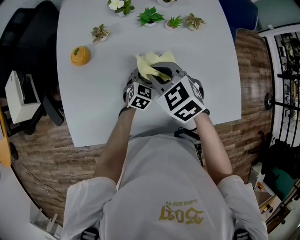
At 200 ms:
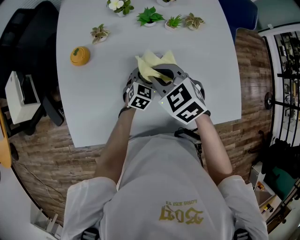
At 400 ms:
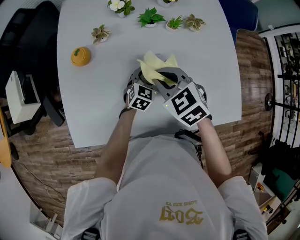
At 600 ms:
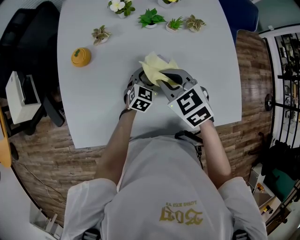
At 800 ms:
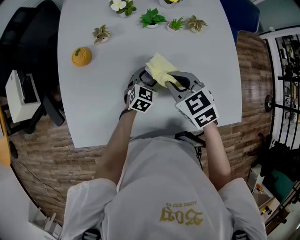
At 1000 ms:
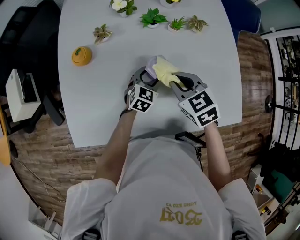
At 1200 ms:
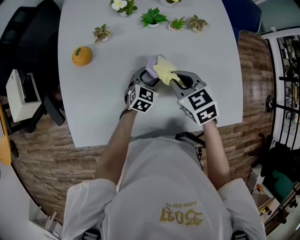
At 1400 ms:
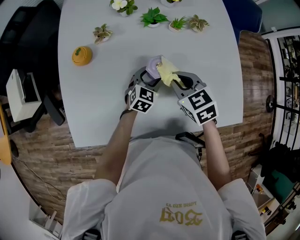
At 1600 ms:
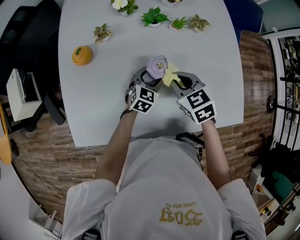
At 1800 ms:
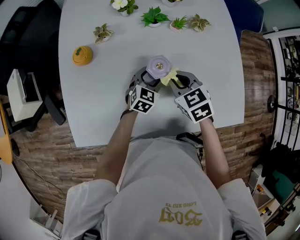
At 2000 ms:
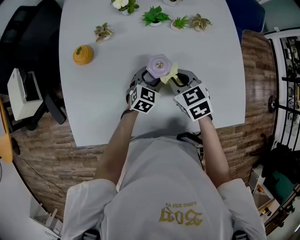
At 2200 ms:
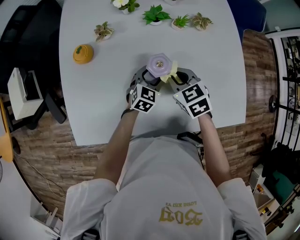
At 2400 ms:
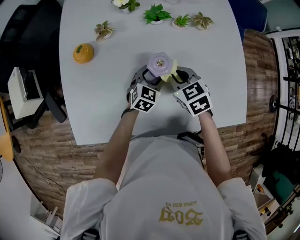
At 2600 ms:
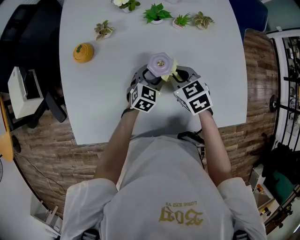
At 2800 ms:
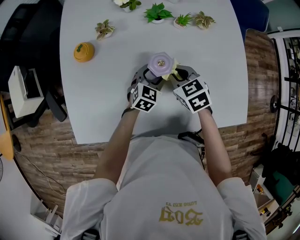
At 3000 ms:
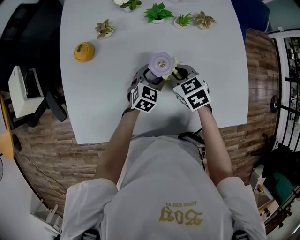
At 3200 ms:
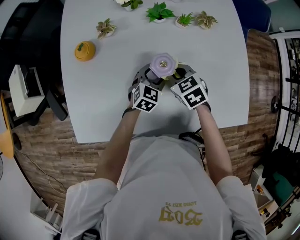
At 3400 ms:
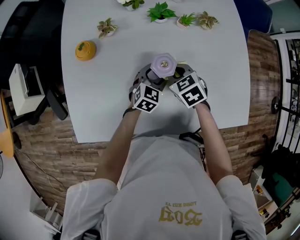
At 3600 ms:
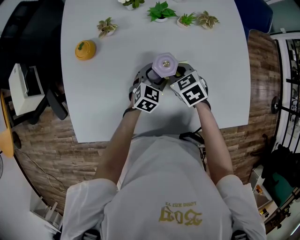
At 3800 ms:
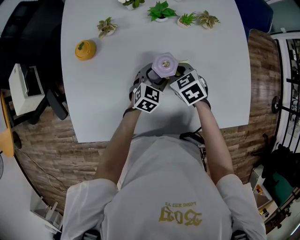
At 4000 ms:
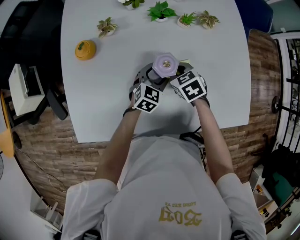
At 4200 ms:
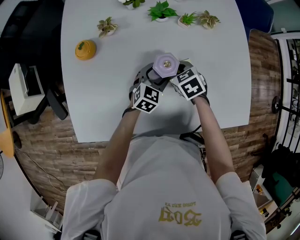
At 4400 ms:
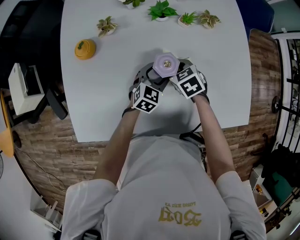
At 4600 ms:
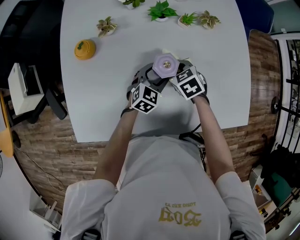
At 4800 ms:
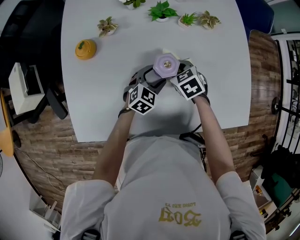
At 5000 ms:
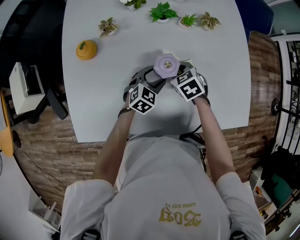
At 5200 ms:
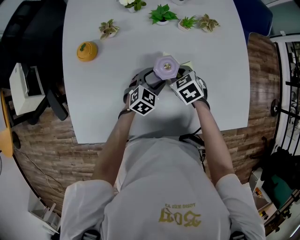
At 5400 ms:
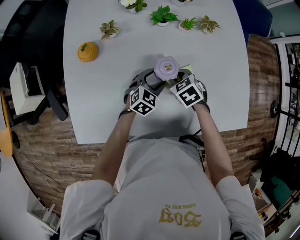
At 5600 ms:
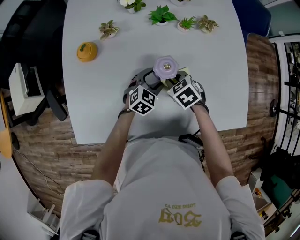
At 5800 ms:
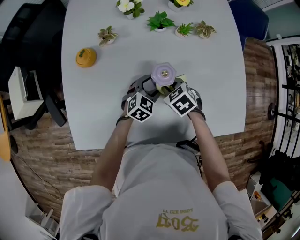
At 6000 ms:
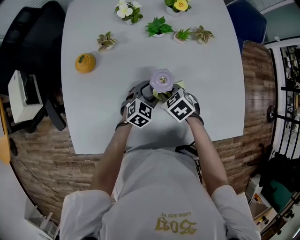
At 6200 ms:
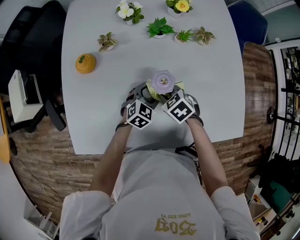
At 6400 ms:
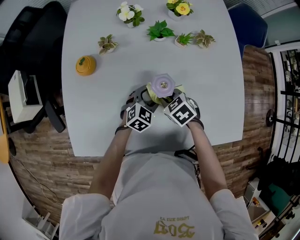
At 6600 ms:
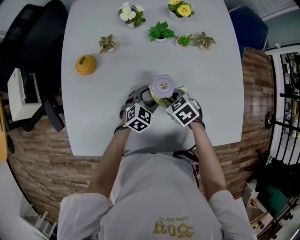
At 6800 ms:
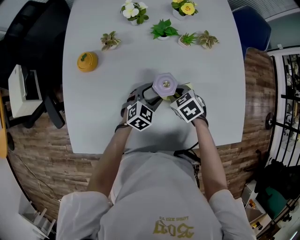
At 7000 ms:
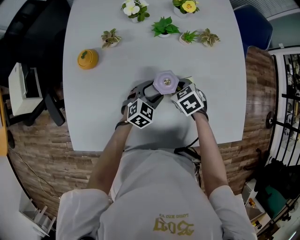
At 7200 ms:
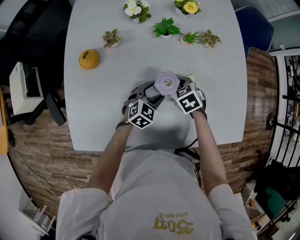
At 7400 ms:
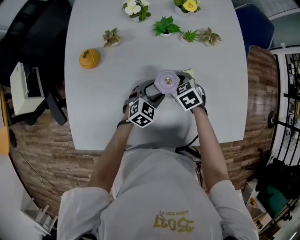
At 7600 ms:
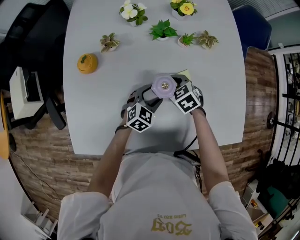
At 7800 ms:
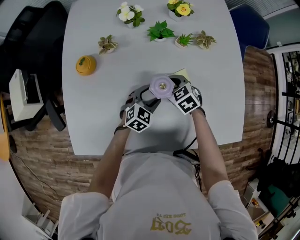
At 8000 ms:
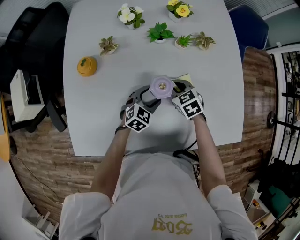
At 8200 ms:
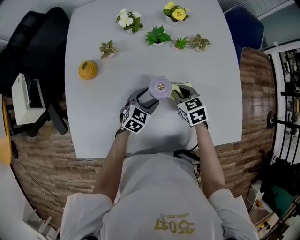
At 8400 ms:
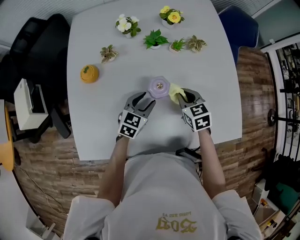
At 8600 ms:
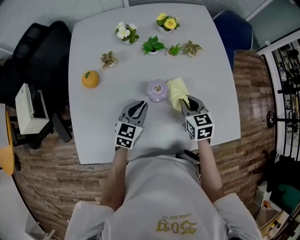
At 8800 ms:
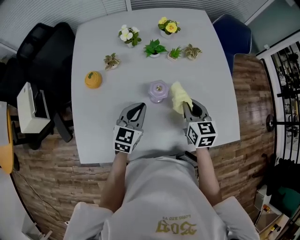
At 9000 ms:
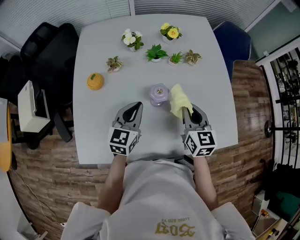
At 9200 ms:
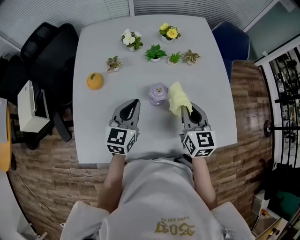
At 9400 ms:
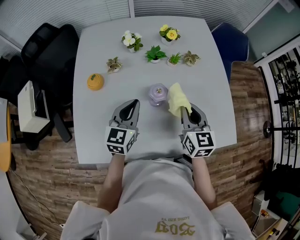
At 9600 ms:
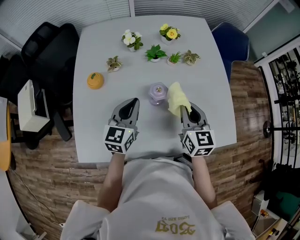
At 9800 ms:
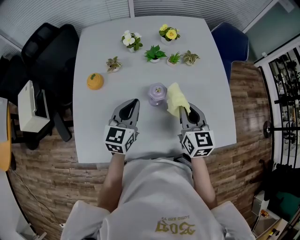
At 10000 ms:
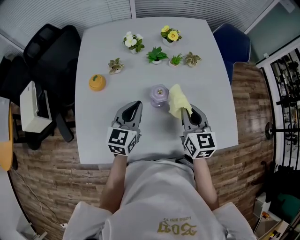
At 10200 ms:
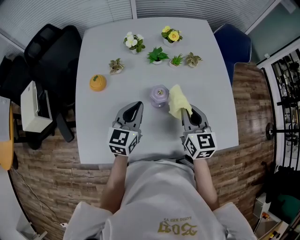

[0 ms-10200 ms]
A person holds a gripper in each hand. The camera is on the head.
0 ms to 1400 ms: The right gripper is displaced to the right by about 5 cm.
1400 ms to 3000 ms: The right gripper is displaced downward by approximately 5 cm.
3000 ms to 4400 ms: The right gripper heads downward, covering approximately 5 cm.
4400 ms to 5800 ms: The grippers stay close to where they were, moving slightly.
5800 ms to 7200 ms: The right gripper moves about 5 cm.
7200 ms to 8800 ms: The left gripper shifts about 15 cm upward, changes its angle by approximately 30 degrees, and closes; the right gripper heads upward, to the right and backward, covering about 20 cm, and angles its fingers upward, by some 30 degrees.
8800 ms to 10200 ms: Both grippers travel together upward, some 5 cm.

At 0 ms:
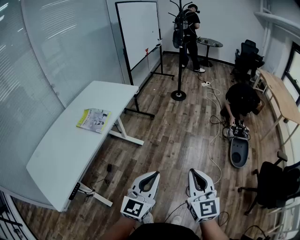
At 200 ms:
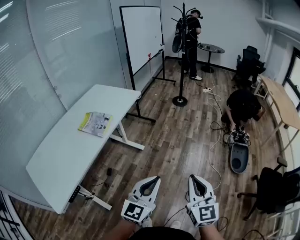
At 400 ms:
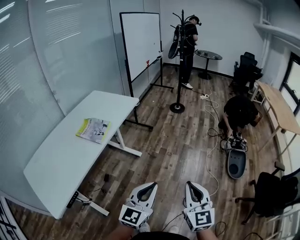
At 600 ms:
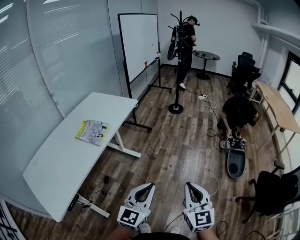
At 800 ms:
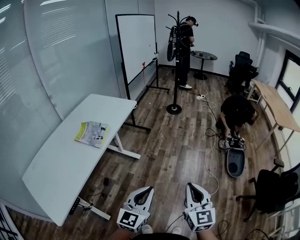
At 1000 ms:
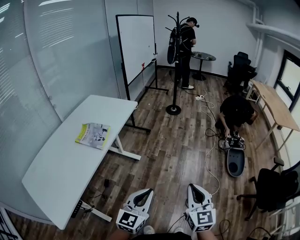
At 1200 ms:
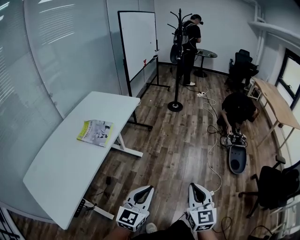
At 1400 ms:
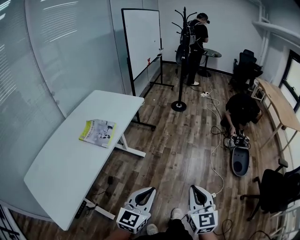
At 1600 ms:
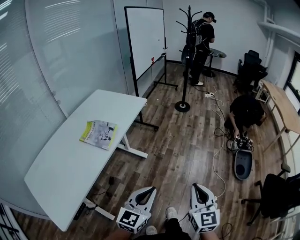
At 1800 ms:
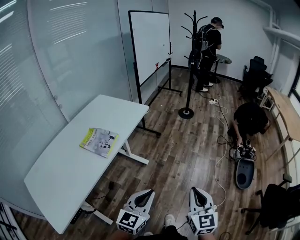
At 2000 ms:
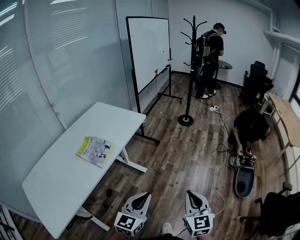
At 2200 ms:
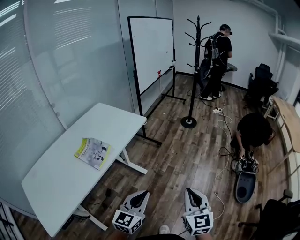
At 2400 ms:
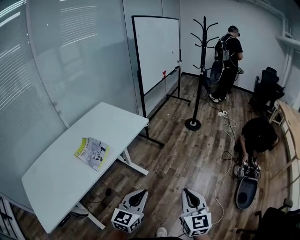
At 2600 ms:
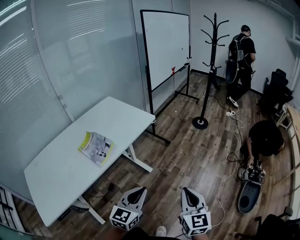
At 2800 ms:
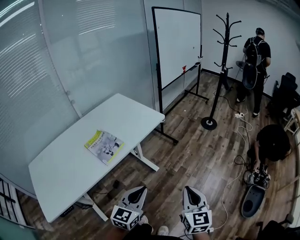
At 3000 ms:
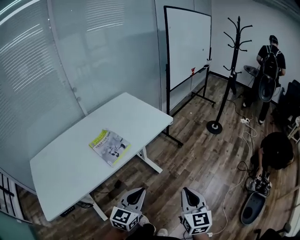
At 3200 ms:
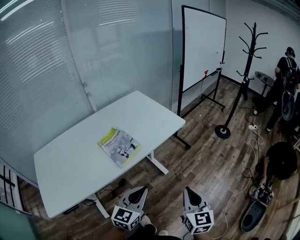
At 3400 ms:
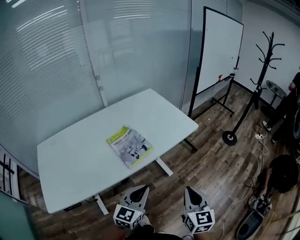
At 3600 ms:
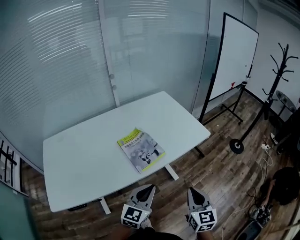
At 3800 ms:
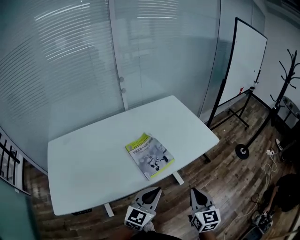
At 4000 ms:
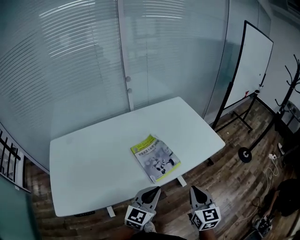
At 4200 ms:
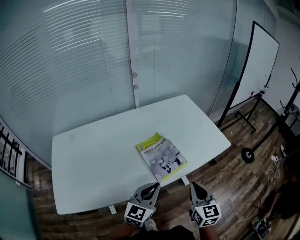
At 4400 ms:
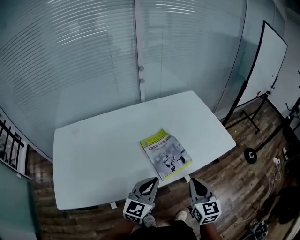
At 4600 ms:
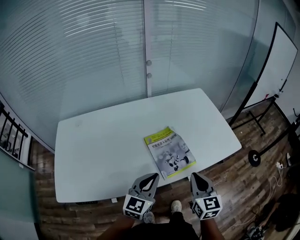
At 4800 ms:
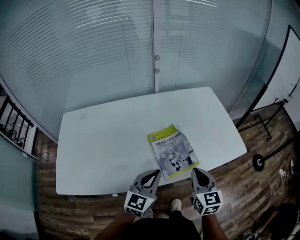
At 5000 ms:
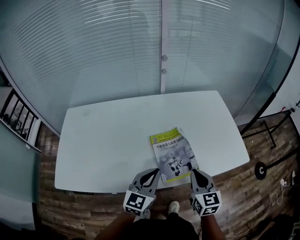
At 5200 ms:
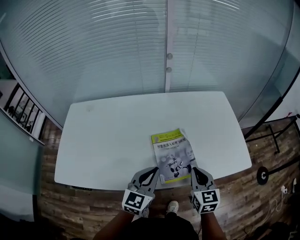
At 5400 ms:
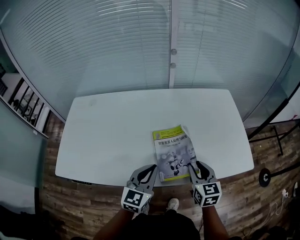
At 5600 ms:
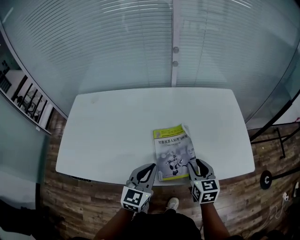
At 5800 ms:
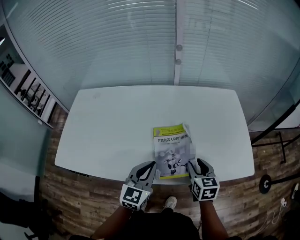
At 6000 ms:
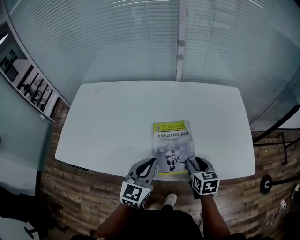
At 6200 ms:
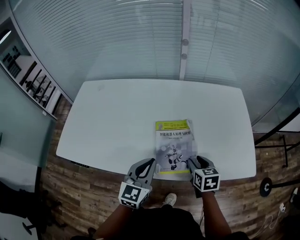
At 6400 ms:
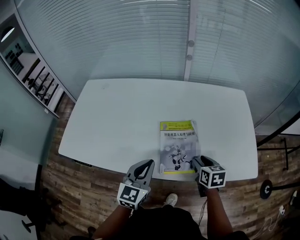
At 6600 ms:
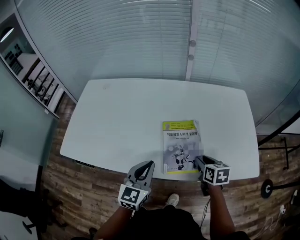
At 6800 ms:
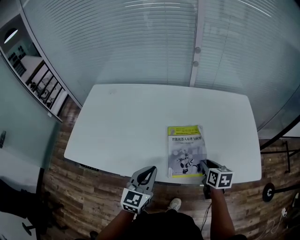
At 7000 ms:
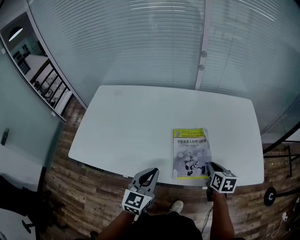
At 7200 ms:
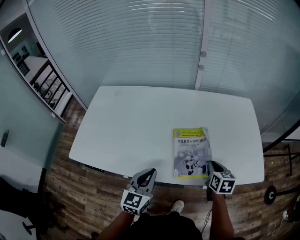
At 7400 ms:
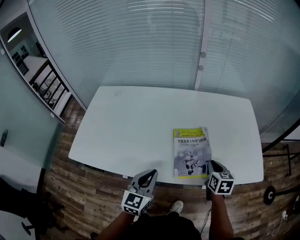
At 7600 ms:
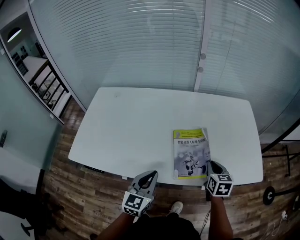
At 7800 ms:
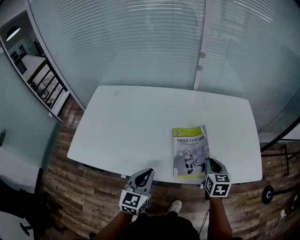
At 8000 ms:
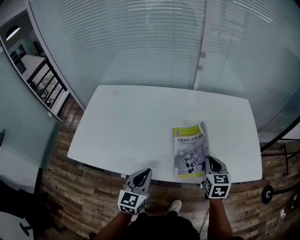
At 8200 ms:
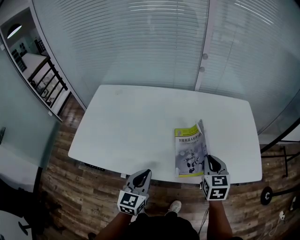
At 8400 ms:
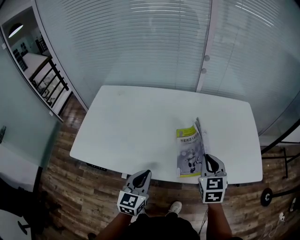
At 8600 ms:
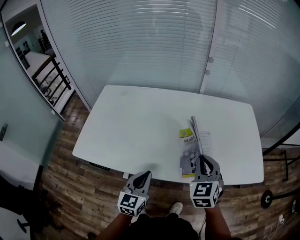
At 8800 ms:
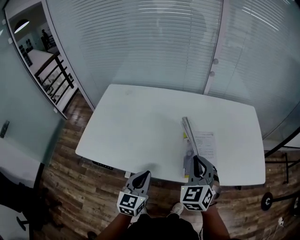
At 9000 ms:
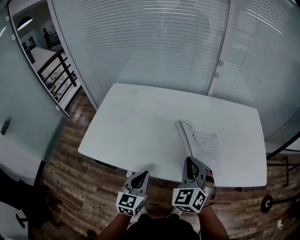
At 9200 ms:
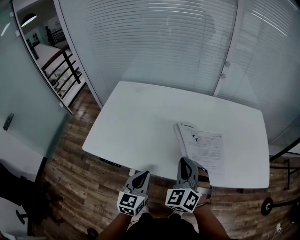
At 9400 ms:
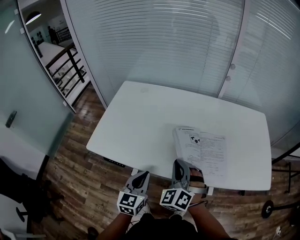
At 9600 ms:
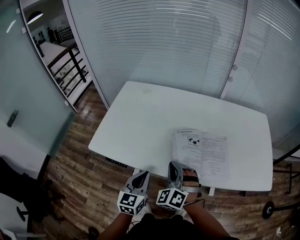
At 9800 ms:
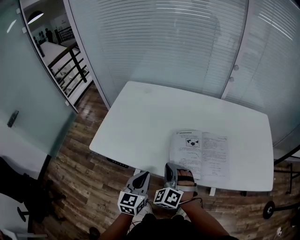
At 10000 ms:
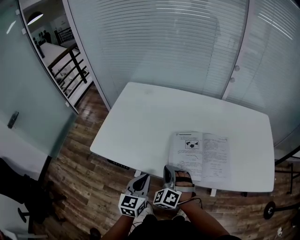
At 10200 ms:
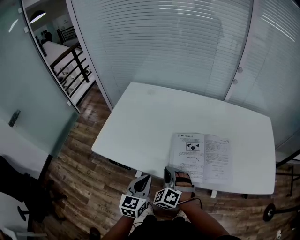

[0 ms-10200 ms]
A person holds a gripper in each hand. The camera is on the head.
0 ms to 1400 ms: The right gripper moves to the left, approximately 5 cm. Meanwhile the left gripper is displaced to the left by some 10 cm.
1400 ms to 3000 ms: The left gripper shifts by some 20 cm, and turns by roughly 30 degrees. Meanwhile the right gripper shifts by approximately 25 cm, and swivels about 30 degrees.
3000 ms to 4400 ms: The two grippers go some 30 cm to the left and forward. The left gripper rotates roughly 20 degrees, while the right gripper swivels approximately 20 degrees.
4400 ms to 5800 ms: The left gripper moves approximately 5 cm, and turns by about 30 degrees. The right gripper shifts by some 20 cm, swivels approximately 30 degrees, and opens its fingers.
5800 ms to 7200 ms: The right gripper closes up, while the left gripper heads to the left, covering about 10 cm.
7200 ms to 8800 ms: The left gripper moves to the left, roughly 5 cm. The right gripper is displaced to the left and upward by roughly 20 cm, and twists approximately 50 degrees counterclockwise, seen from behind.
8800 ms to 10200 ms: The right gripper goes some 25 cm to the left and downward, and rotates about 30 degrees. Meanwhile the left gripper travels to the left by about 10 cm.

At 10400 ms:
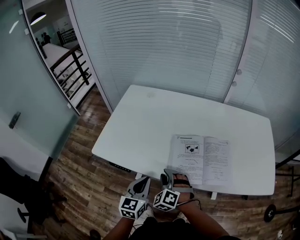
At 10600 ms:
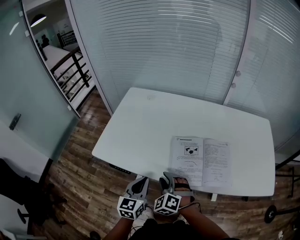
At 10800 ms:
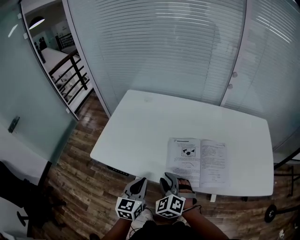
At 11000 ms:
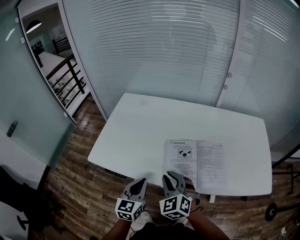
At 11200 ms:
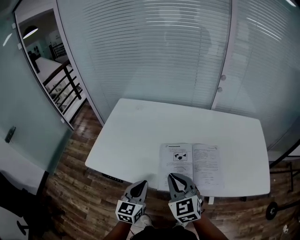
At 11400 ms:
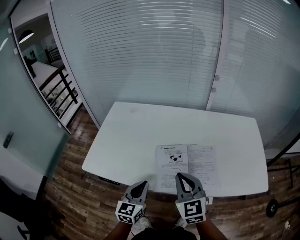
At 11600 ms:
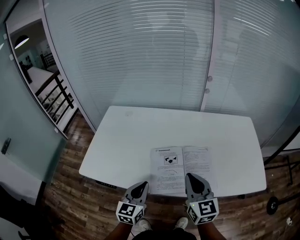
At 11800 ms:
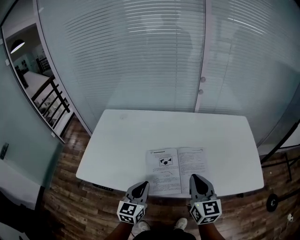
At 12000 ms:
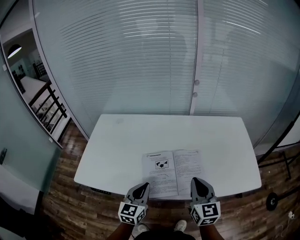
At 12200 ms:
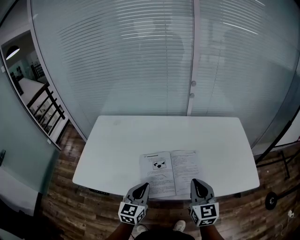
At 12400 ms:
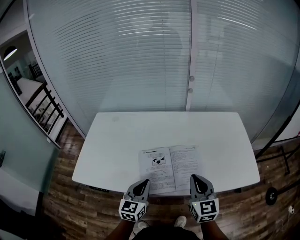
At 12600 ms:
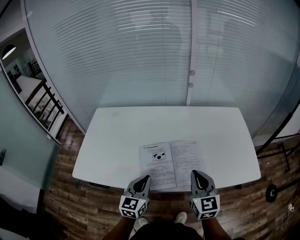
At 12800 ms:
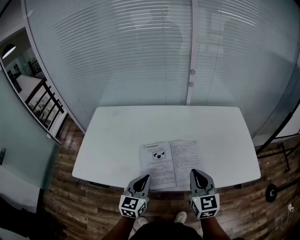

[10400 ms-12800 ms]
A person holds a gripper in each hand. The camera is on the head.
10400 ms to 11600 ms: The right gripper goes roughly 25 cm upward and to the right, rotates around the line of its fingers by approximately 60 degrees, clockwise from behind, and closes its fingers, while the left gripper moves to the right, about 5 cm.
11600 ms to 12800 ms: Both grippers travel together to the right, roughly 5 cm.
